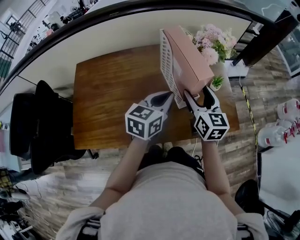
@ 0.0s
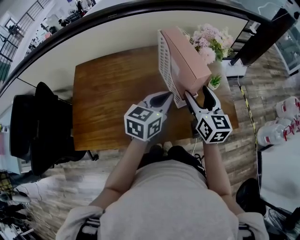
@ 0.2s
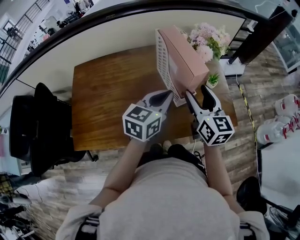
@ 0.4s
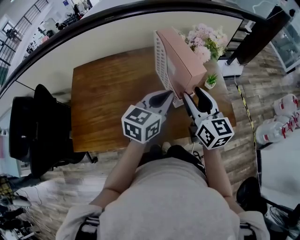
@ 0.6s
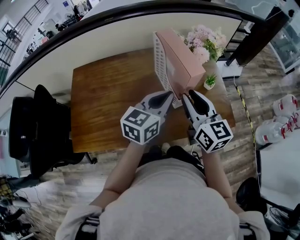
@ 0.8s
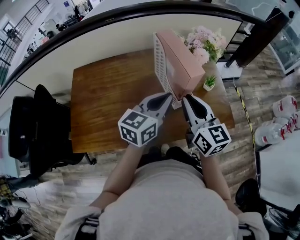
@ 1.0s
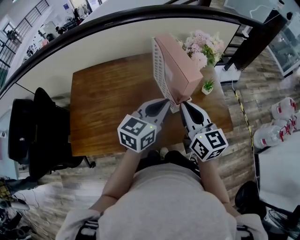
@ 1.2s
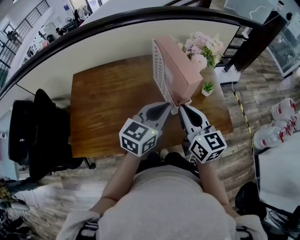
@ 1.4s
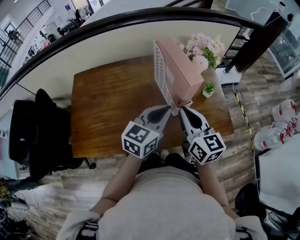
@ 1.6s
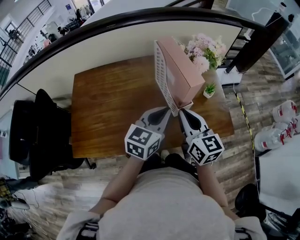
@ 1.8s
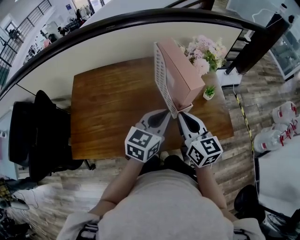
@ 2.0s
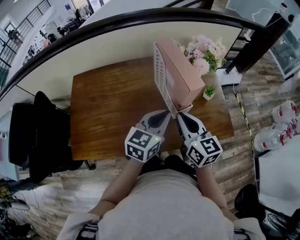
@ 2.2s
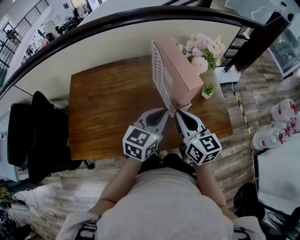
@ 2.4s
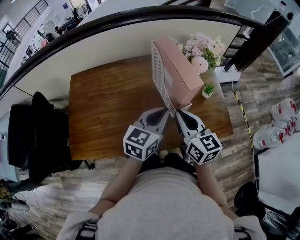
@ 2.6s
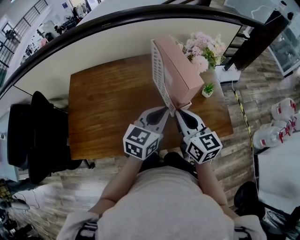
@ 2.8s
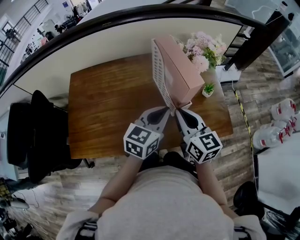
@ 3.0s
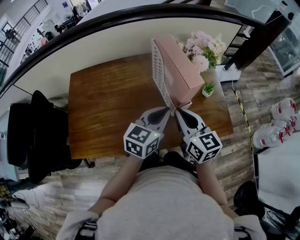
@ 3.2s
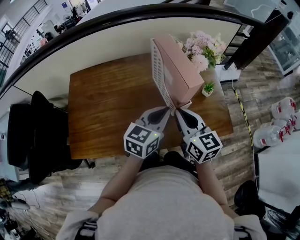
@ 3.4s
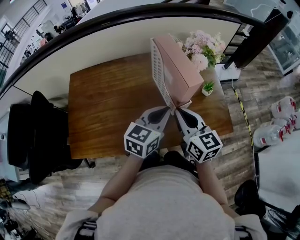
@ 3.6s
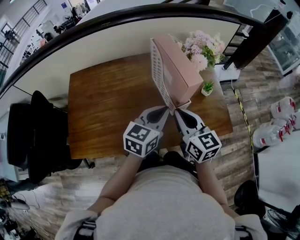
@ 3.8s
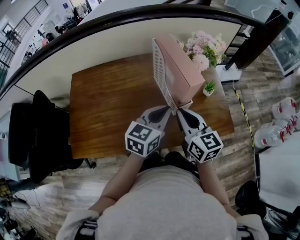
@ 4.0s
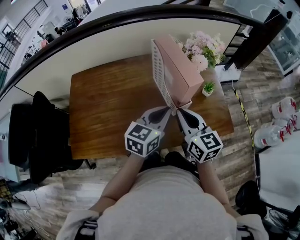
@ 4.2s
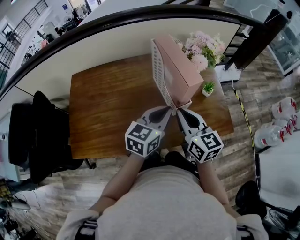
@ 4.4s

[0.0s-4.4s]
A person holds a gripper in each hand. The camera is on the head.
0.0s to 1.4s: The left gripper moves about 5 cm. Meanwhile the right gripper shifts about 10 cm backward and upward, and closes its fingers.
1.4s to 3.0s: The grippers move only a little.
3.0s to 4.4s: Both grippers stay about where they are.

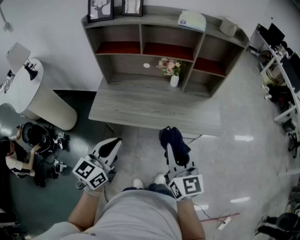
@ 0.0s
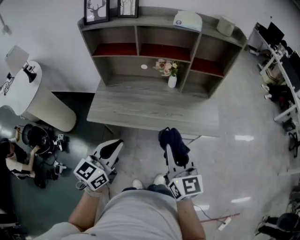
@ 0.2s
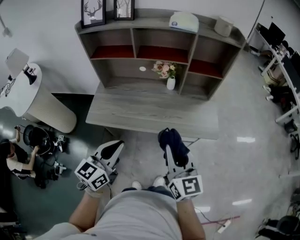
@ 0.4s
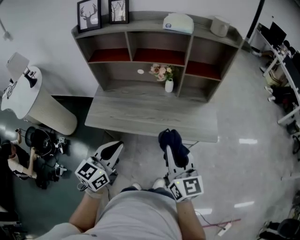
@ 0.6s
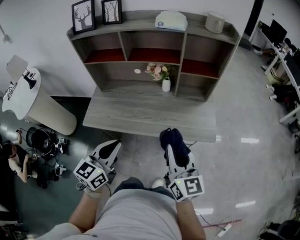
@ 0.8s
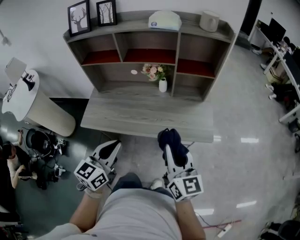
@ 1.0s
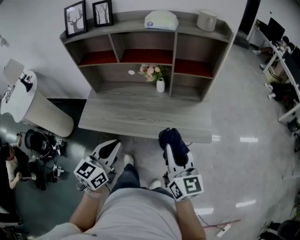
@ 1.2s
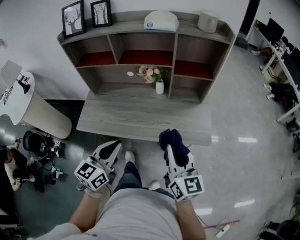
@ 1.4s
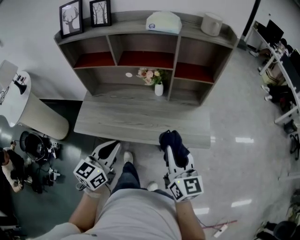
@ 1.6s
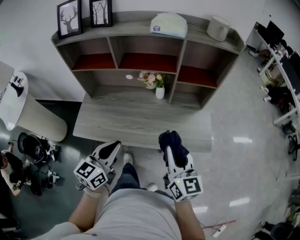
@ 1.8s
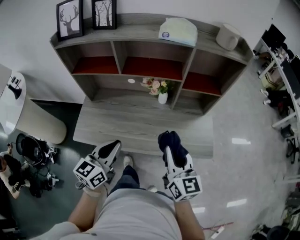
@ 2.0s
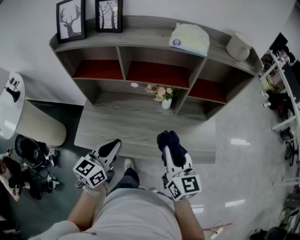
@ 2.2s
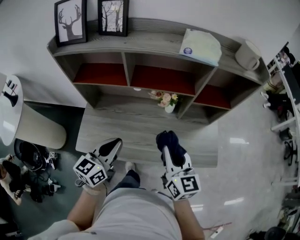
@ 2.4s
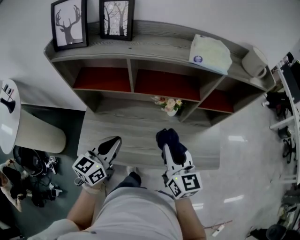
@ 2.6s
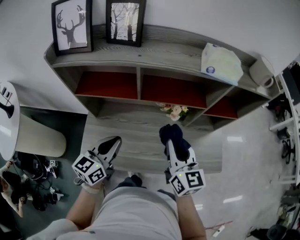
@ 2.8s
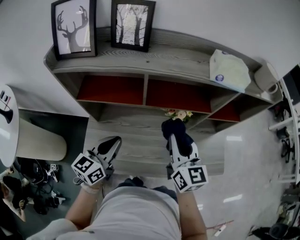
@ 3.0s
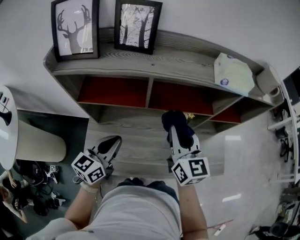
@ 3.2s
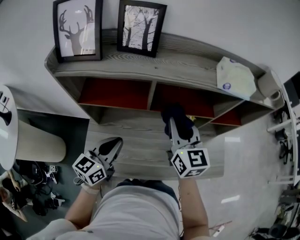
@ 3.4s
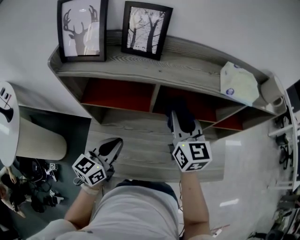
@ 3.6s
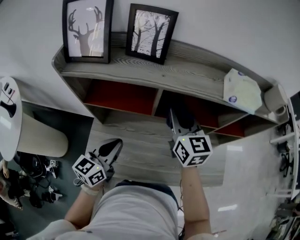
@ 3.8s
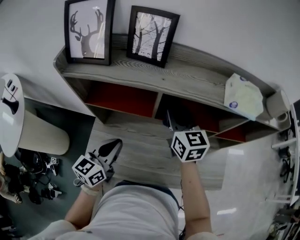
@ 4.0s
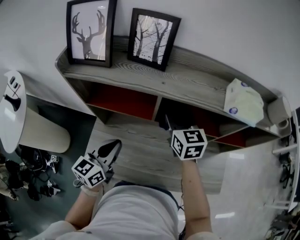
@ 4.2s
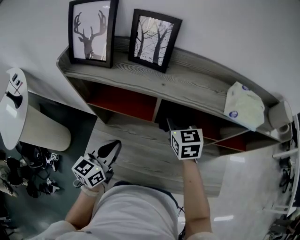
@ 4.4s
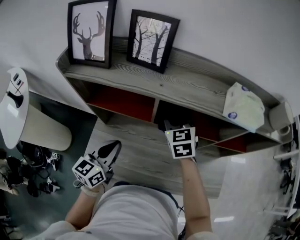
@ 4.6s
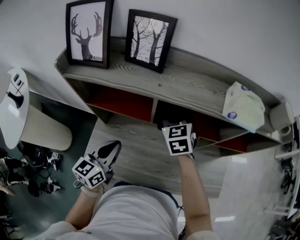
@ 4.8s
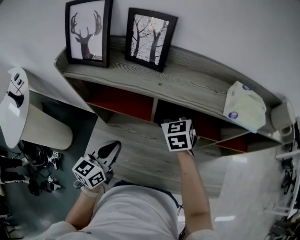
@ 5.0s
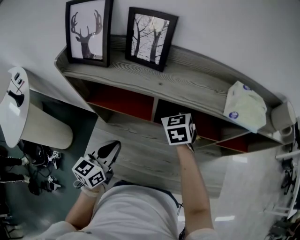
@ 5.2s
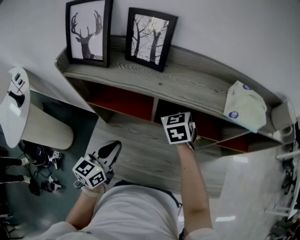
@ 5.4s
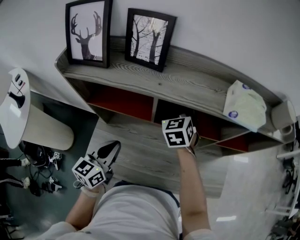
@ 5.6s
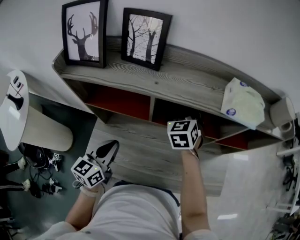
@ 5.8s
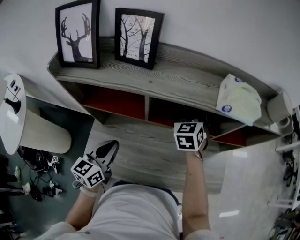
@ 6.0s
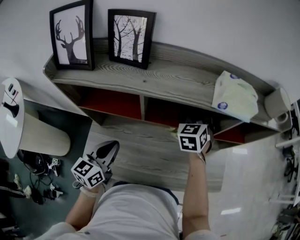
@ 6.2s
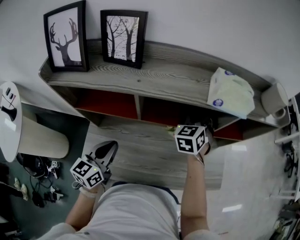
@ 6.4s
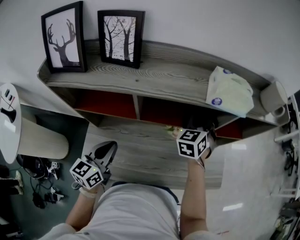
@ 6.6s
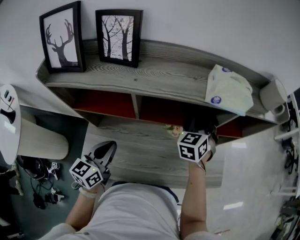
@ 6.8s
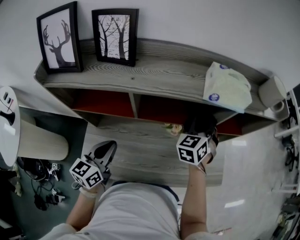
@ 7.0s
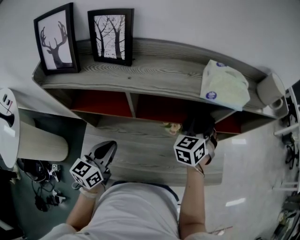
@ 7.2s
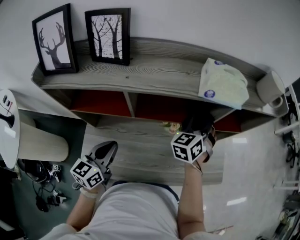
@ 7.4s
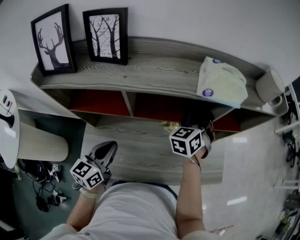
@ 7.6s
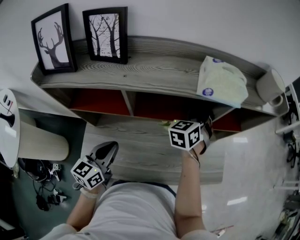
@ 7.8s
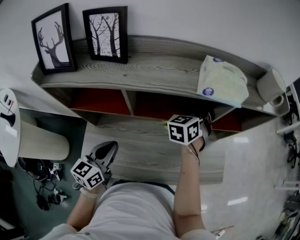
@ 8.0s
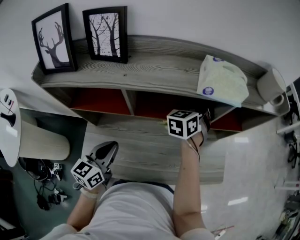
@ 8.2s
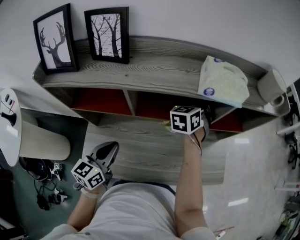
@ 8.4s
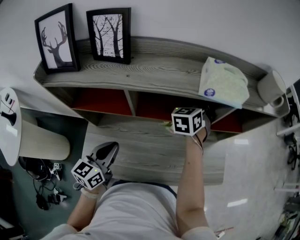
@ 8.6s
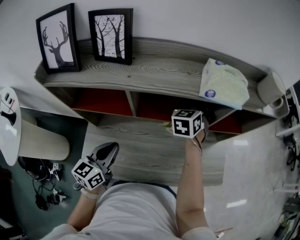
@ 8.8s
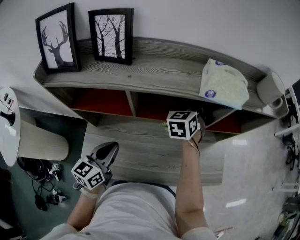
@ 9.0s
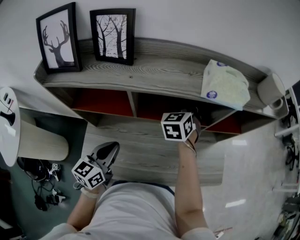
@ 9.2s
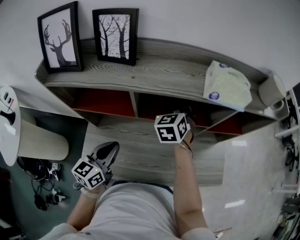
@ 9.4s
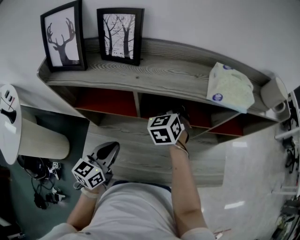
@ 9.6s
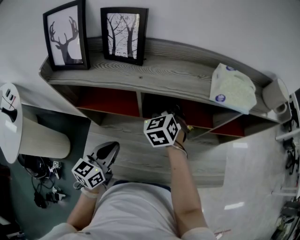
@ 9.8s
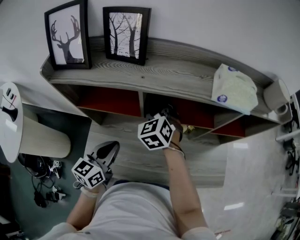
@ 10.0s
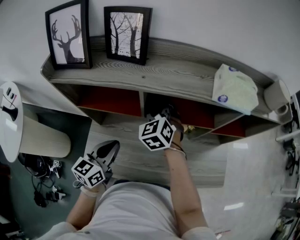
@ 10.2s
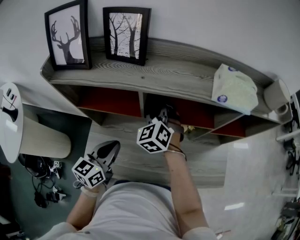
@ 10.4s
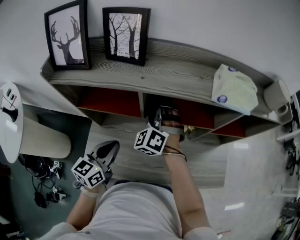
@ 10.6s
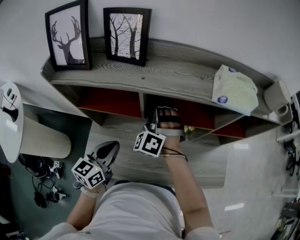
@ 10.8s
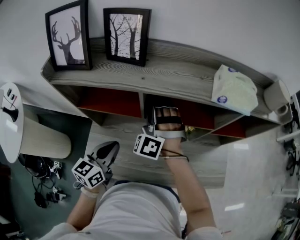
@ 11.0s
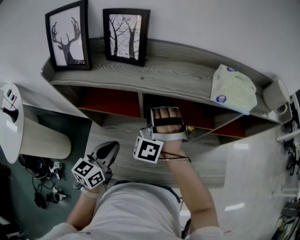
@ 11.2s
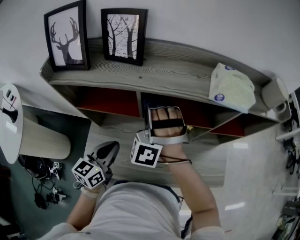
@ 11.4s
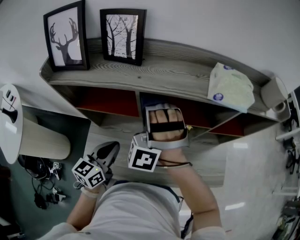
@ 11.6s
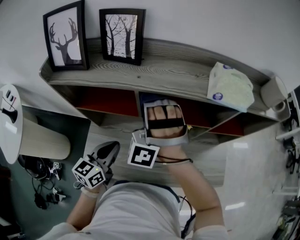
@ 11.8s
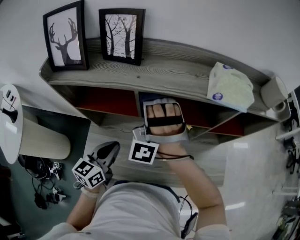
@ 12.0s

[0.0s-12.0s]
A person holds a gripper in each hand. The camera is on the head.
0.0s to 1.6s: The two grippers go some 15 cm to the right and forward.
1.6s to 3.0s: Both grippers travel together forward and to the left, some 35 cm.
3.0s to 4.4s: The right gripper goes some 15 cm forward, turns by approximately 30 degrees, and opens its fingers.
4.4s to 6.0s: The right gripper travels to the right by about 10 cm, rotates roughly 30 degrees, and closes.
6.0s to 7.6s: The right gripper is displaced to the right by approximately 10 cm, and changes its angle by some 20 degrees.
7.6s to 9.0s: The right gripper goes about 5 cm to the left.
9.0s to 10.4s: The right gripper moves to the left and backward, about 20 cm, and rotates about 30 degrees.
10.4s to 12.0s: The right gripper goes approximately 15 cm upward, and rotates around the line of its fingers by about 50 degrees, counterclockwise from behind.

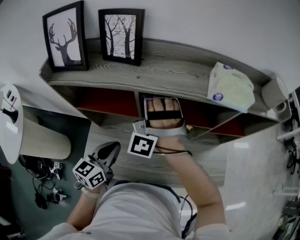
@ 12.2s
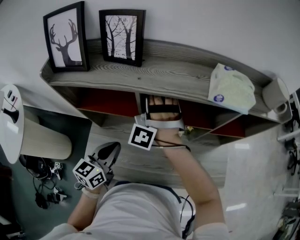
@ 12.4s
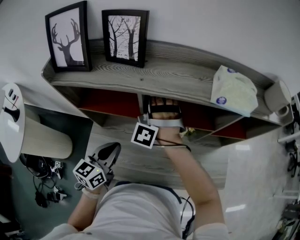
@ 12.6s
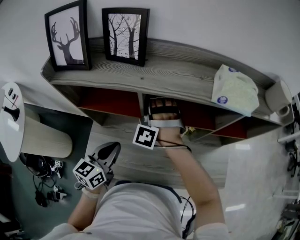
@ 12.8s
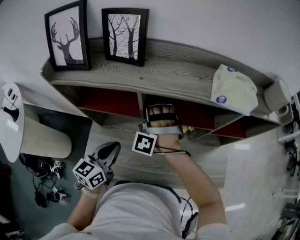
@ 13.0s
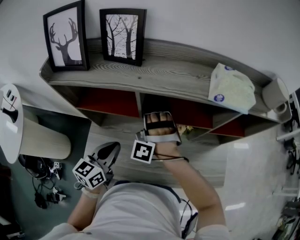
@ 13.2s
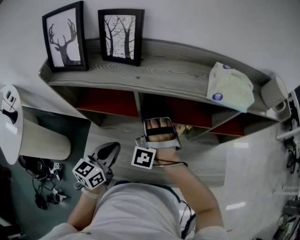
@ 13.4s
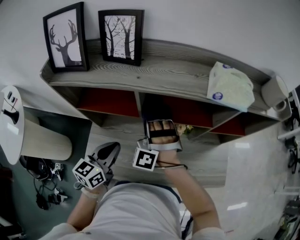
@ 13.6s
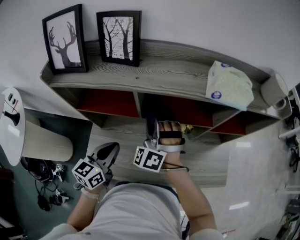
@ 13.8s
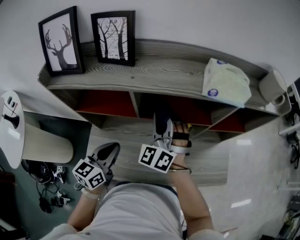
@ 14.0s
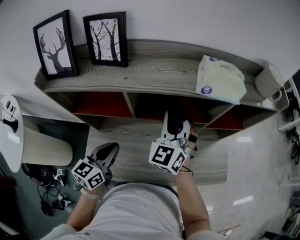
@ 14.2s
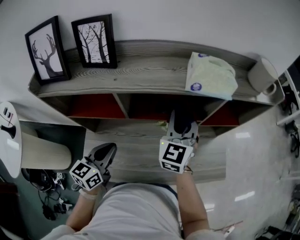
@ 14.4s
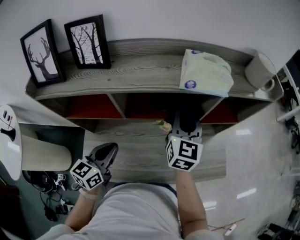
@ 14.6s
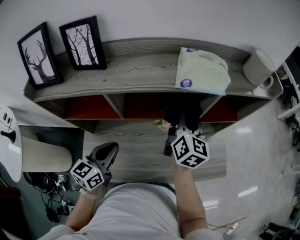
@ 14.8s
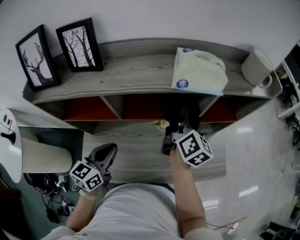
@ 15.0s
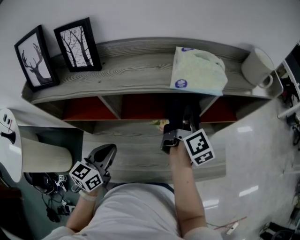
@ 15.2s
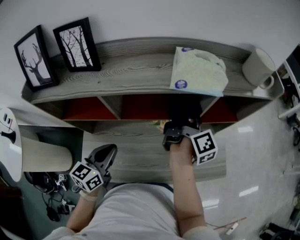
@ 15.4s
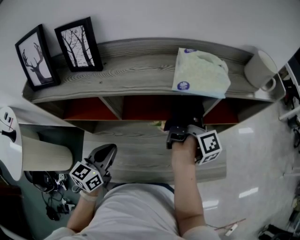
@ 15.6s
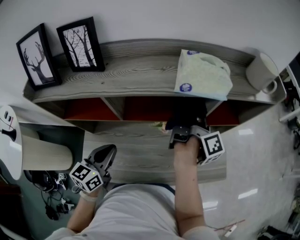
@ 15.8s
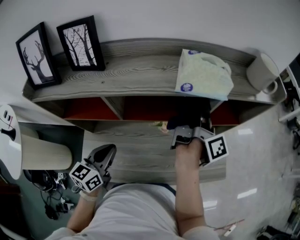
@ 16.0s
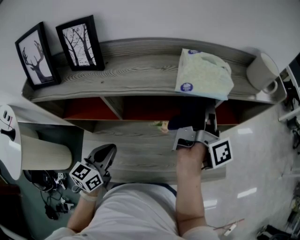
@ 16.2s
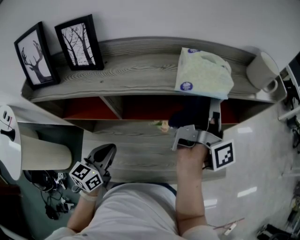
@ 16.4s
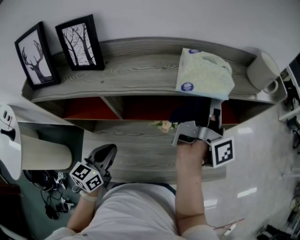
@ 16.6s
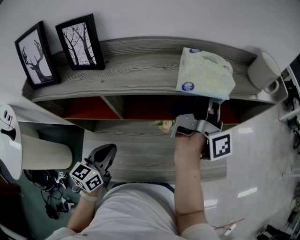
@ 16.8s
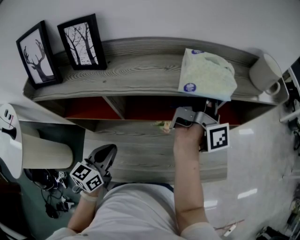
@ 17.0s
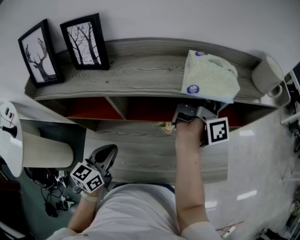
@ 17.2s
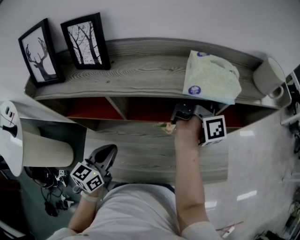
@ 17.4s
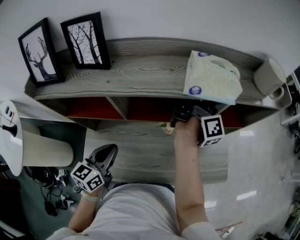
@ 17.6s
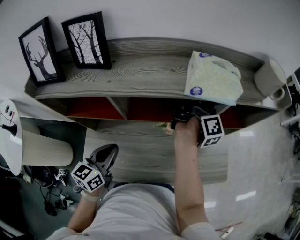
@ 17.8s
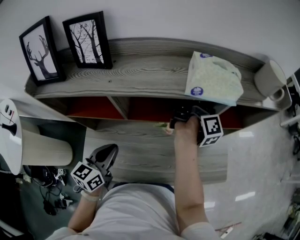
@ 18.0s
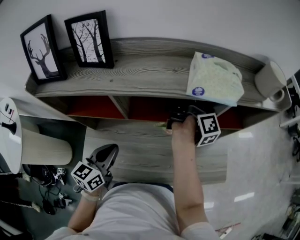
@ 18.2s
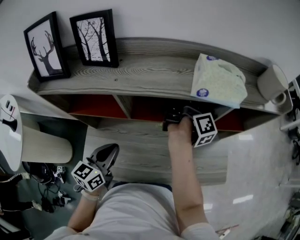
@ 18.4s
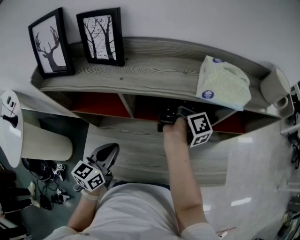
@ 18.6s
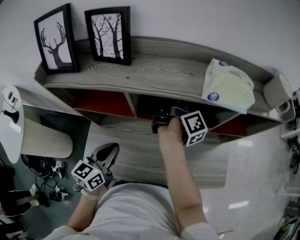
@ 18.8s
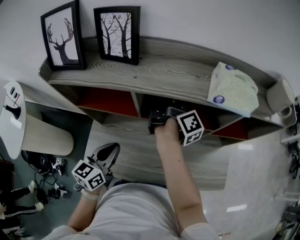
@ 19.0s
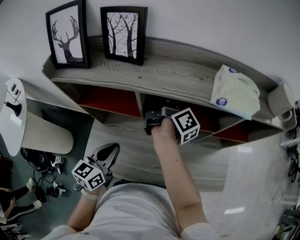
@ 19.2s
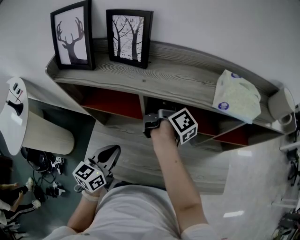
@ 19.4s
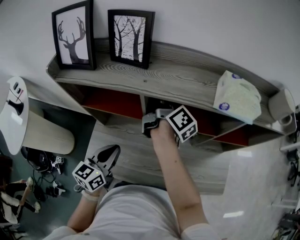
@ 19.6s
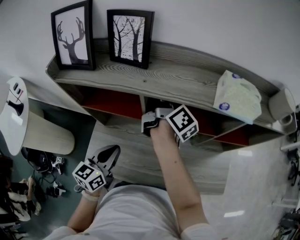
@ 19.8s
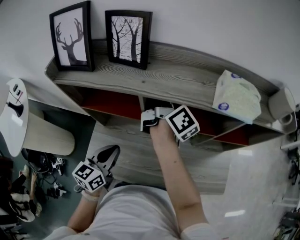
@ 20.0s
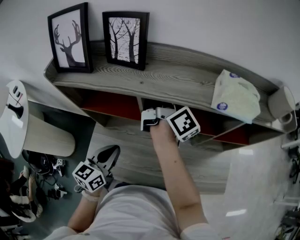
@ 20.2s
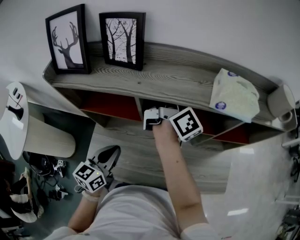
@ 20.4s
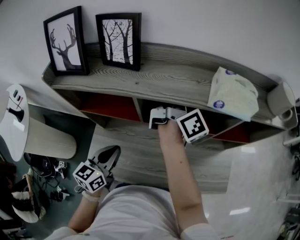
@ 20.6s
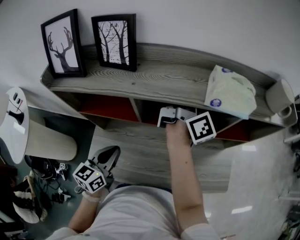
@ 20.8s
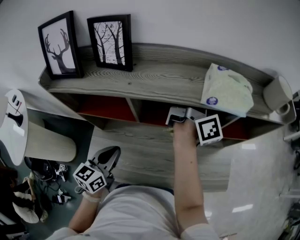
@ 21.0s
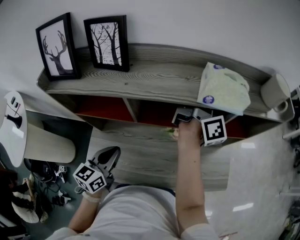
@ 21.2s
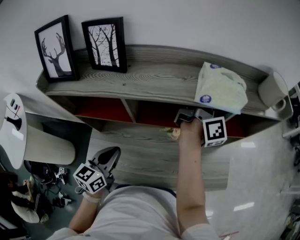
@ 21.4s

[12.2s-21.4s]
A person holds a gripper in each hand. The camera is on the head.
12.2s to 13.8s: The right gripper heads downward, covering roughly 10 cm, and rotates about 30 degrees.
13.8s to 15.2s: The left gripper heads to the right, covering about 5 cm; the right gripper shifts some 25 cm to the right and forward, and twists about 130 degrees clockwise, seen from behind.
15.2s to 16.8s: The right gripper is displaced upward by roughly 10 cm, and turns by some 40 degrees.
16.8s to 18.4s: The right gripper heads downward and to the left, covering approximately 15 cm, and rotates approximately 30 degrees.
18.4s to 19.8s: The right gripper moves to the left, roughly 20 cm, and swivels approximately 30 degrees.
19.8s to 21.4s: The right gripper is displaced to the right by about 25 cm, and turns by roughly 30 degrees.
